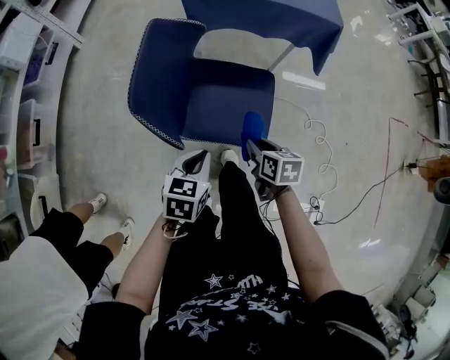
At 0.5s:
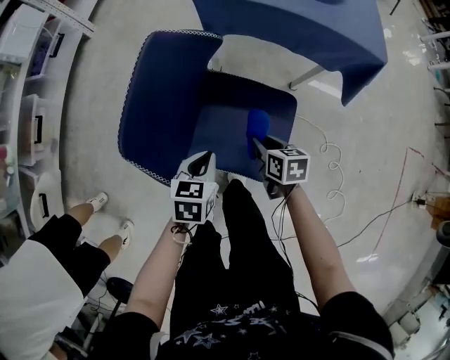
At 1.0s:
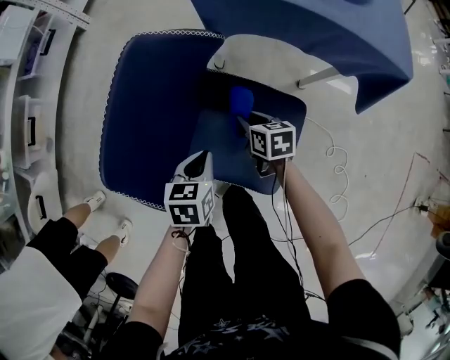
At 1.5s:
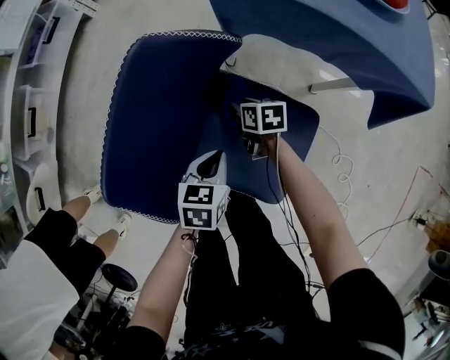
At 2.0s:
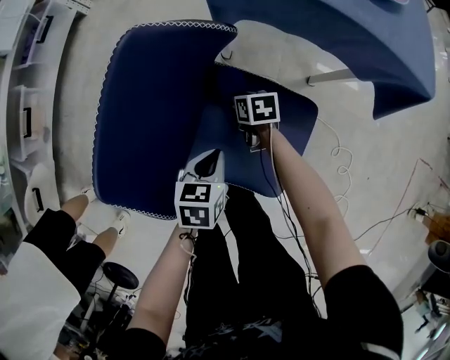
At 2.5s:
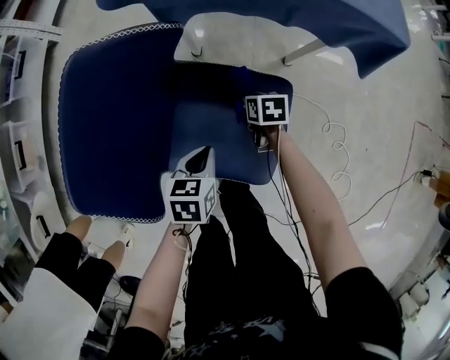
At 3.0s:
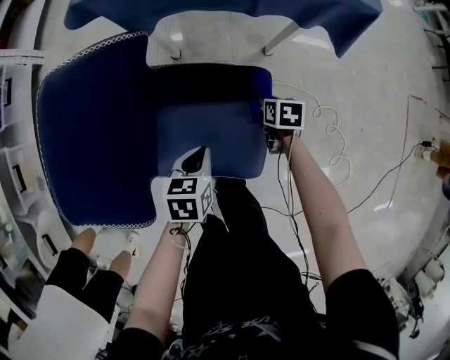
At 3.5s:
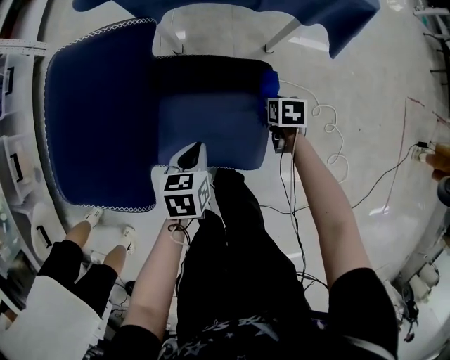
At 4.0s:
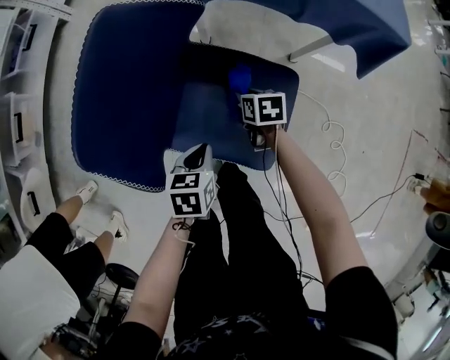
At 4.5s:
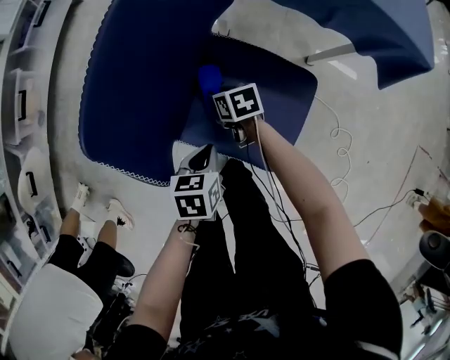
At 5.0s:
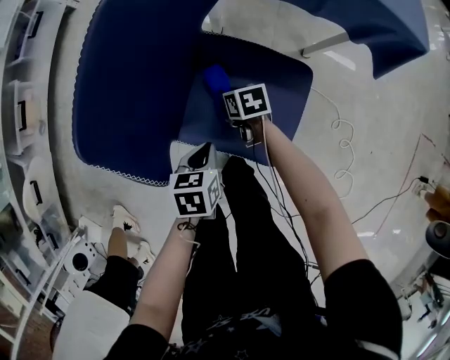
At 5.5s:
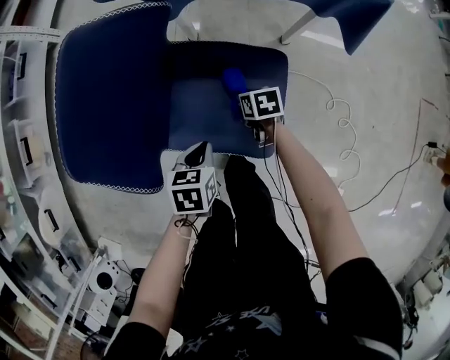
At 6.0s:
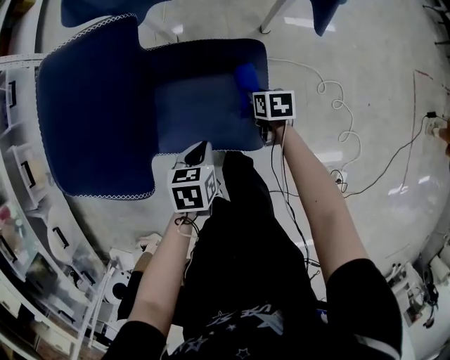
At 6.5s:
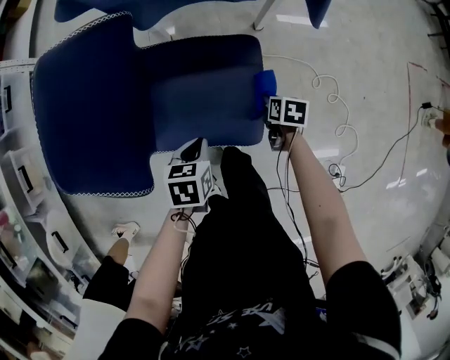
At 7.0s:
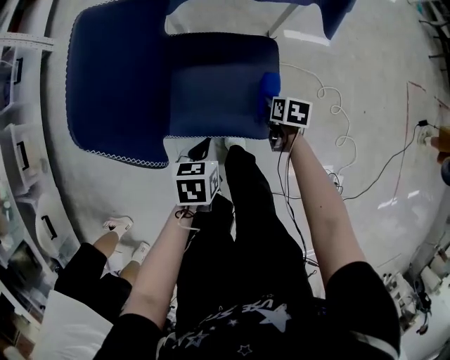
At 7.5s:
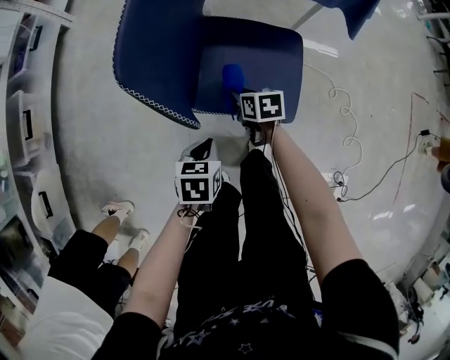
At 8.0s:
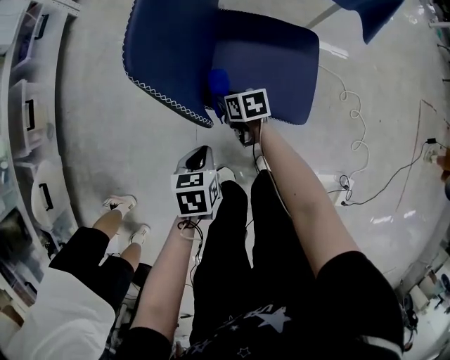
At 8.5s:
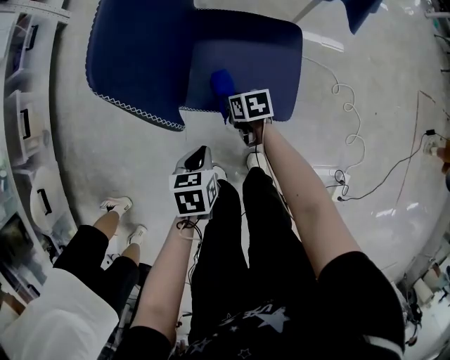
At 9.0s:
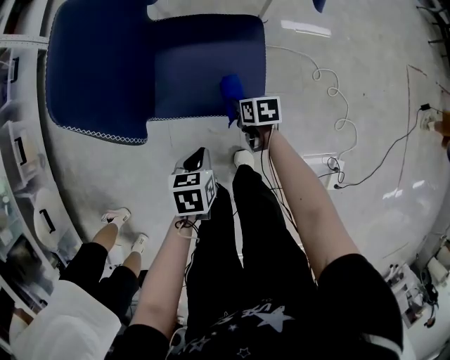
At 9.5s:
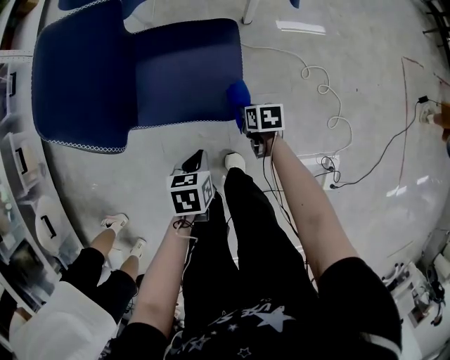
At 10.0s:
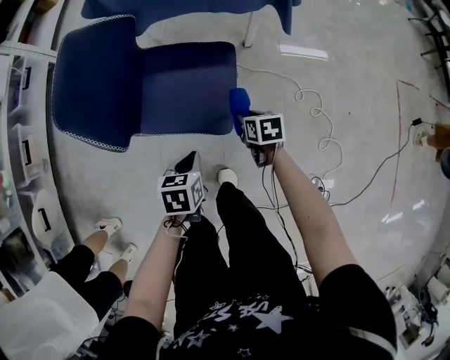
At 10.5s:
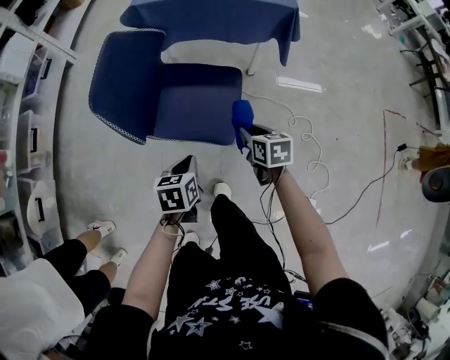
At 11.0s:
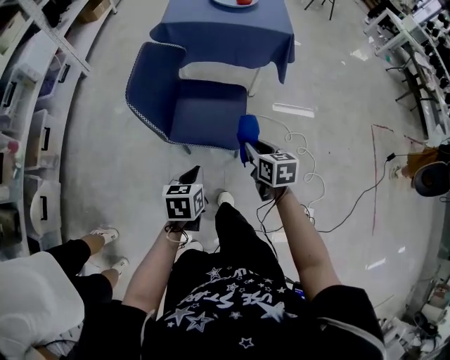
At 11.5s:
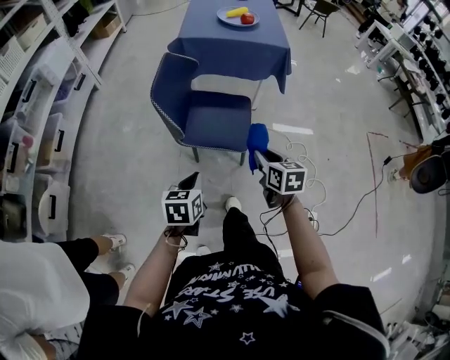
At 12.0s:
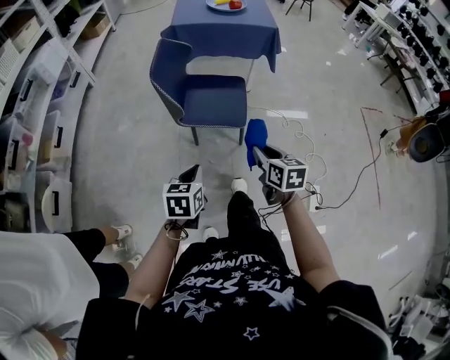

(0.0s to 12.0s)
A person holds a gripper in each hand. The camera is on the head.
0.0s - 2.0s: The right gripper goes some 40 cm forward and downward, and turns by some 20 degrees, while the left gripper moves forward and downward, roughly 25 cm, and turns by about 20 degrees.
2.0s - 4.0s: The left gripper ends up approximately 5 cm from where it was.
4.0s - 6.0s: The left gripper changes place by approximately 5 cm. Meanwhile the right gripper changes place by some 15 cm.
6.0s - 8.0s: The right gripper shifts by roughly 30 cm, and changes its angle by approximately 20 degrees; the left gripper changes place by some 20 cm.
8.0s - 10.0s: The two grippers go some 30 cm to the right.
10.0s - 12.0s: The two grippers go approximately 40 cm backward, upward and to the left. The right gripper rotates roughly 30 degrees. Meanwhile the left gripper changes its angle by some 20 degrees.

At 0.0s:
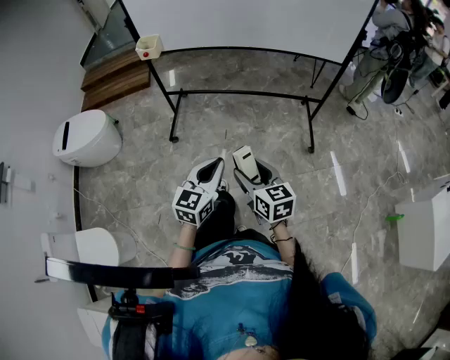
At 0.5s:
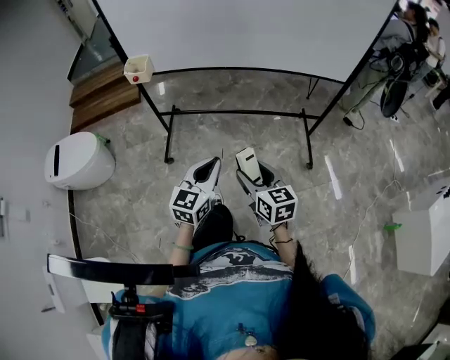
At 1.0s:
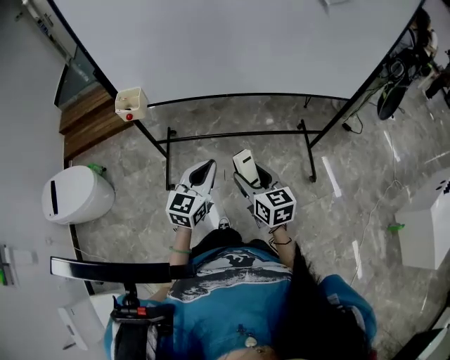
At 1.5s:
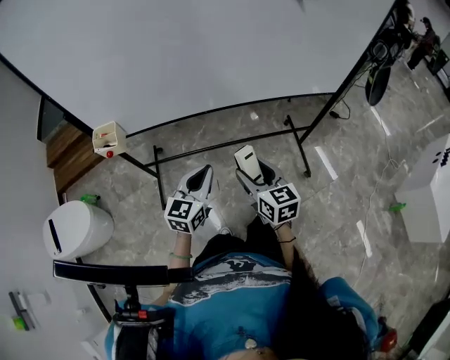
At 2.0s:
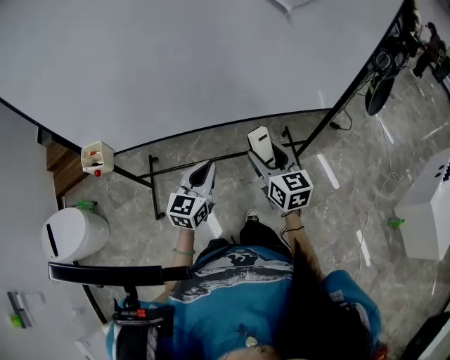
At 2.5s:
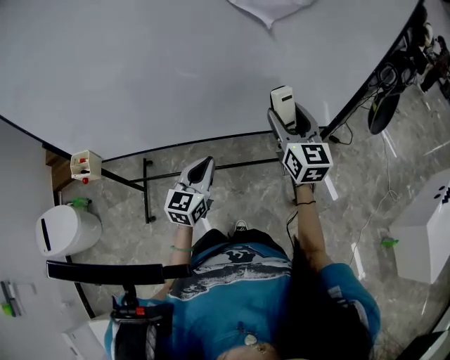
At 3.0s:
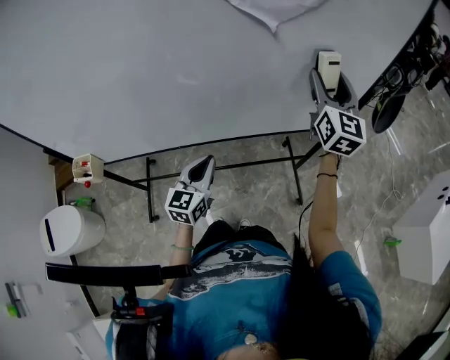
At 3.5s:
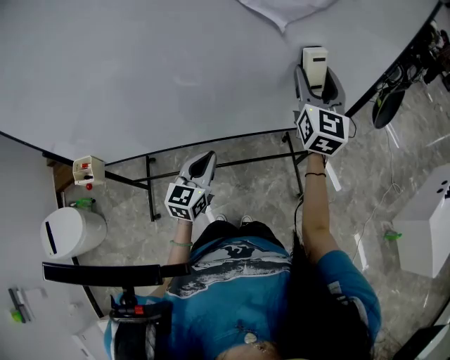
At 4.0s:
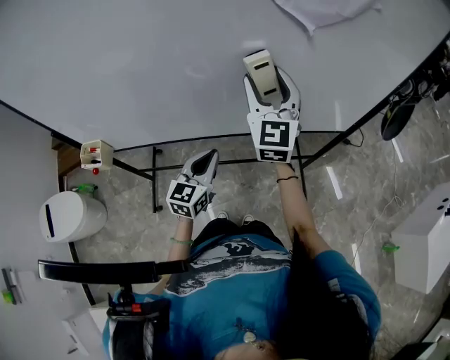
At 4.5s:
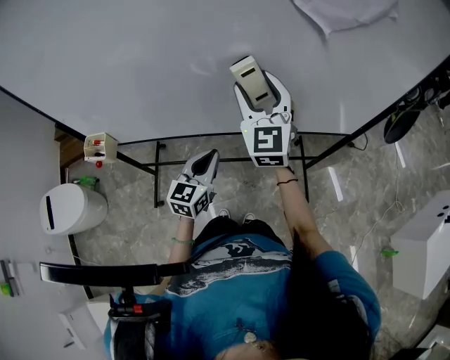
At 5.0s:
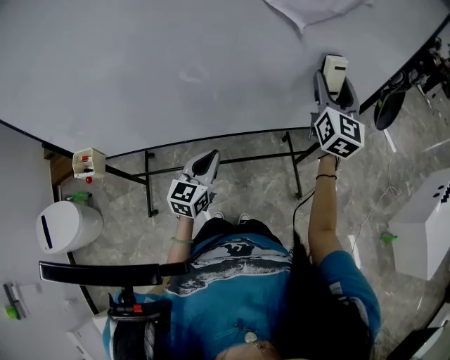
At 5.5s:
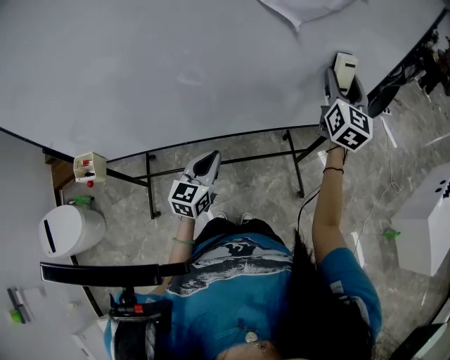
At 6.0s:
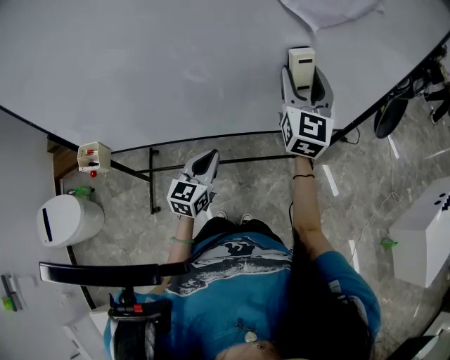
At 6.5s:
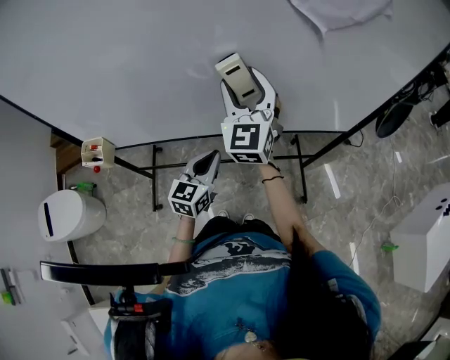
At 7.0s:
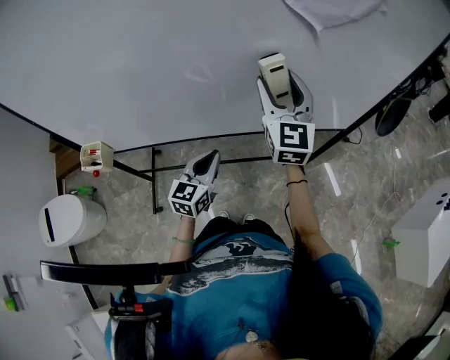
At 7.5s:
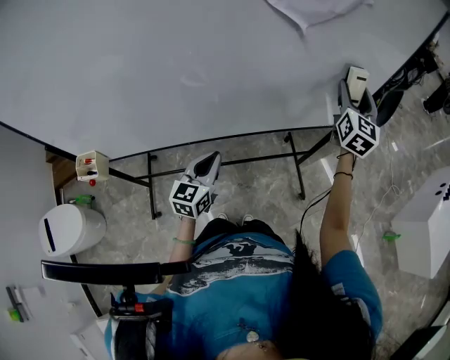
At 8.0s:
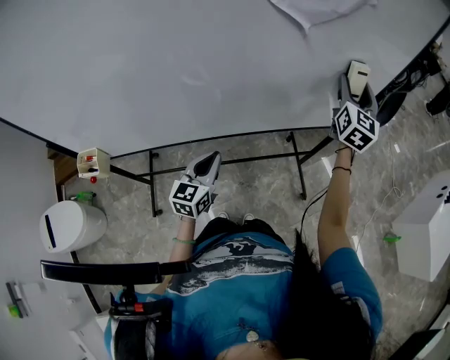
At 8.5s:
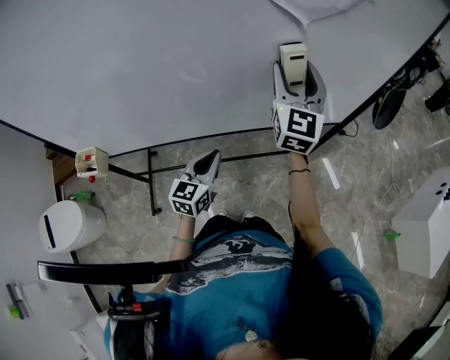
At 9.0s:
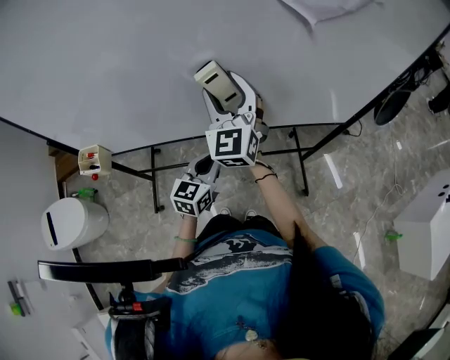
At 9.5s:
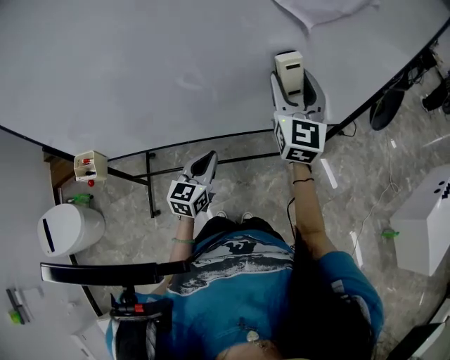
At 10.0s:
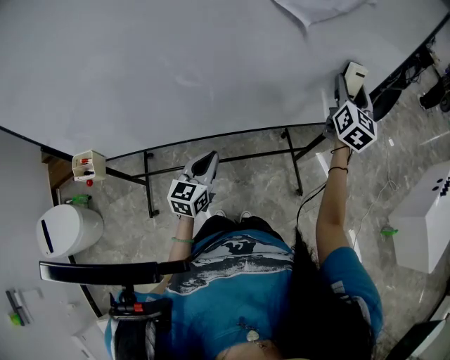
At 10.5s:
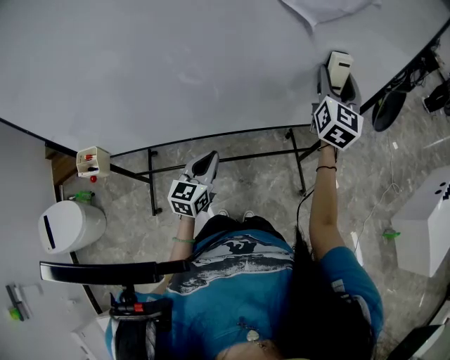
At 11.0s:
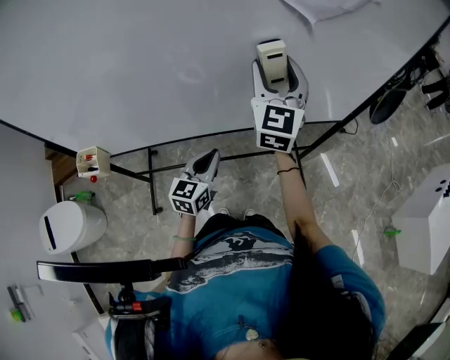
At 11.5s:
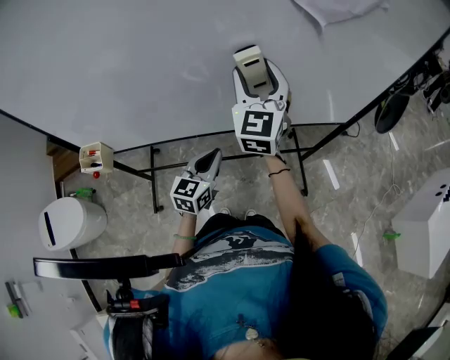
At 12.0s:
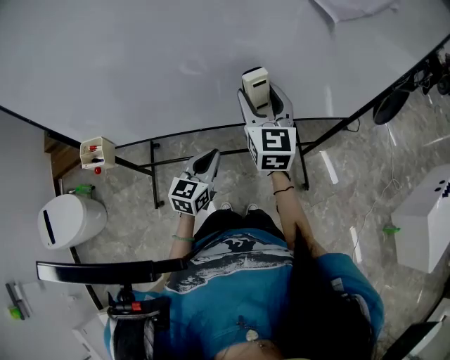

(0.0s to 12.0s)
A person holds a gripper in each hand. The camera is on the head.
0.0s - 2.0s: Both grippers are carried forward, approximately 50 cm. The right gripper rotates roughly 20 degrees.
2.0s - 4.0s: The right gripper is displaced forward and upward by roughly 25 cm, and swivels roughly 40 degrees; the left gripper is displaced forward by about 10 cm.
4.0s - 6.0s: The right gripper moves left and right over roughly 30 cm, changing direction 2 times.
6.0s - 8.0s: The right gripper moves to the right, some 20 cm.
8.0s - 10.0s: The right gripper goes to the left and returns, about 35 cm each way.
10.0s - 12.0s: The right gripper heads to the left and backward, covering roughly 35 cm, and changes its angle by some 30 degrees. The left gripper heads to the left, covering about 5 cm.

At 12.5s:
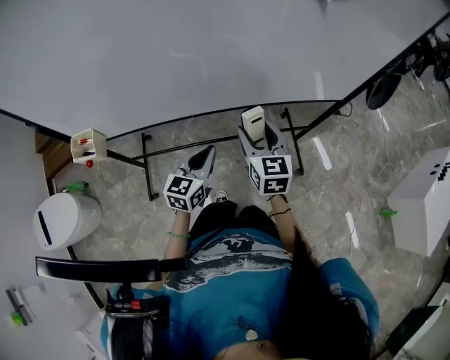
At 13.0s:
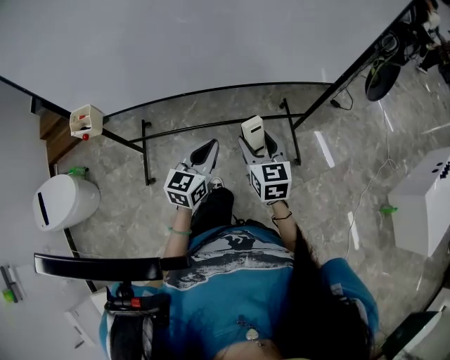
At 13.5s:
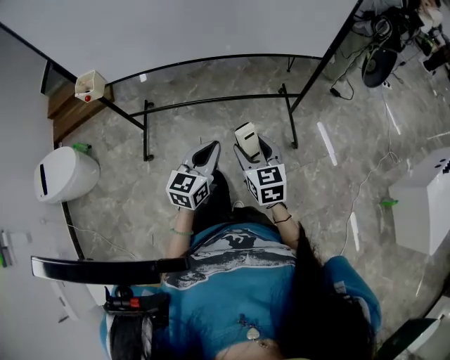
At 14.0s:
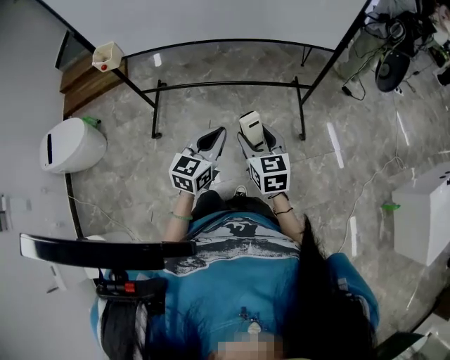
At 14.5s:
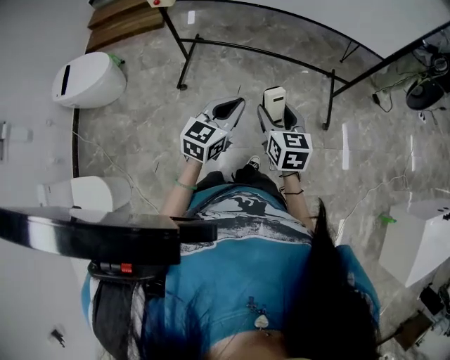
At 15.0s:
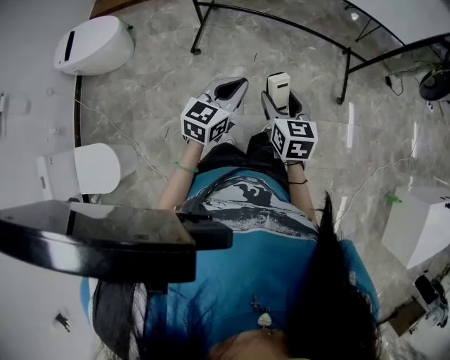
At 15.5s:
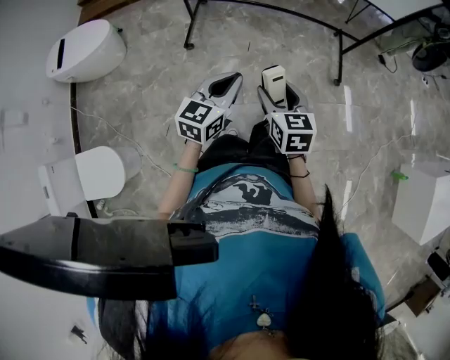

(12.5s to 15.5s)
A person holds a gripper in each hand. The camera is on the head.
12.5s - 14.0s: The right gripper travels backward by roughly 35 cm, while the left gripper travels backward and to the right by roughly 35 cm.
14.0s - 15.5s: Both grippers travel together to the left and backward, about 30 cm.
